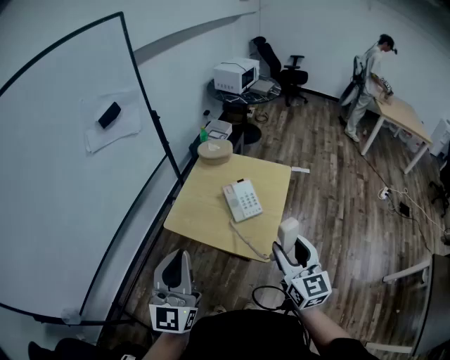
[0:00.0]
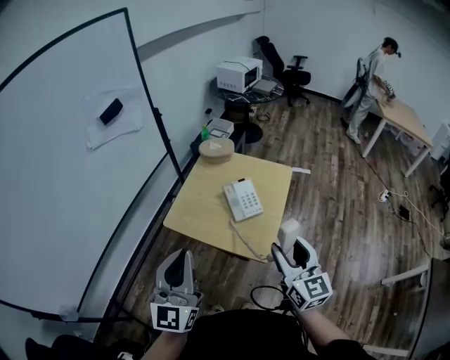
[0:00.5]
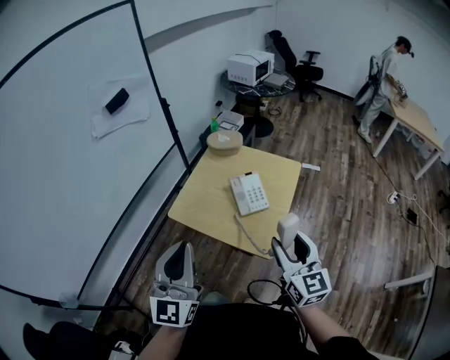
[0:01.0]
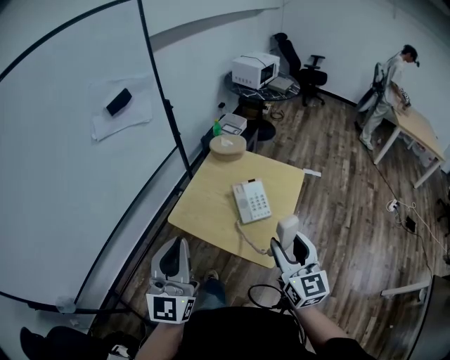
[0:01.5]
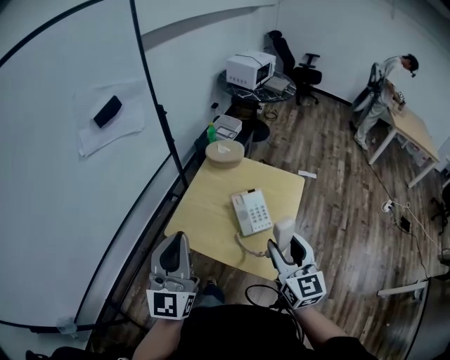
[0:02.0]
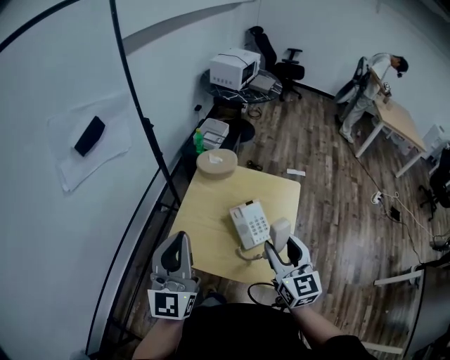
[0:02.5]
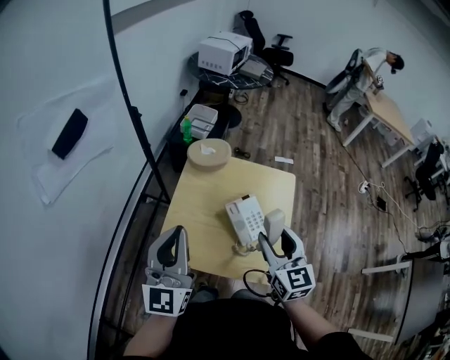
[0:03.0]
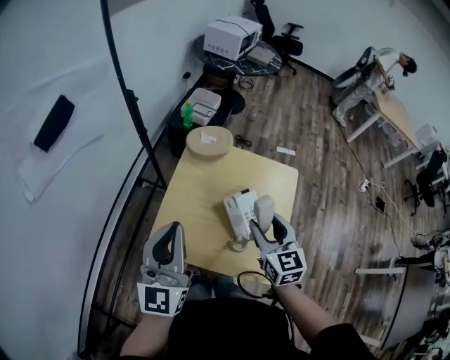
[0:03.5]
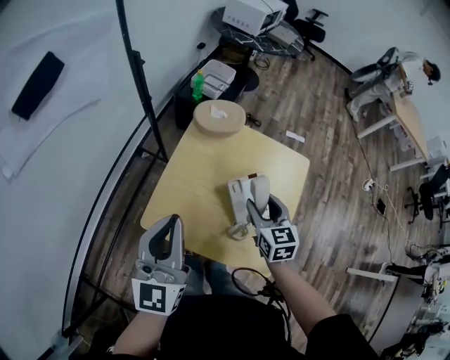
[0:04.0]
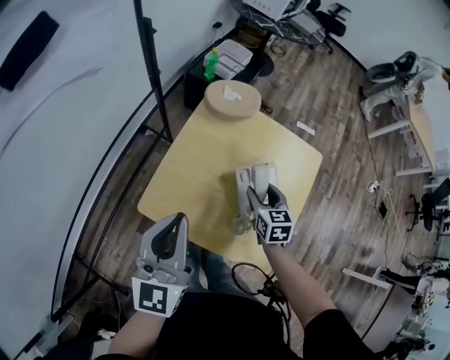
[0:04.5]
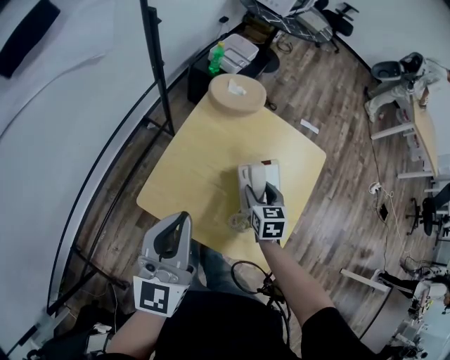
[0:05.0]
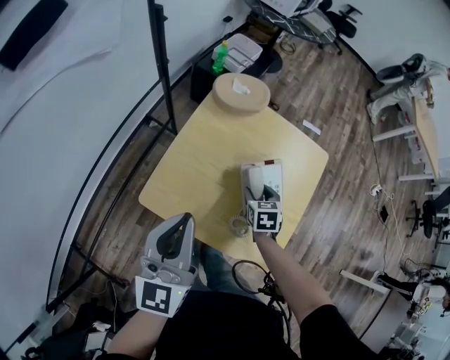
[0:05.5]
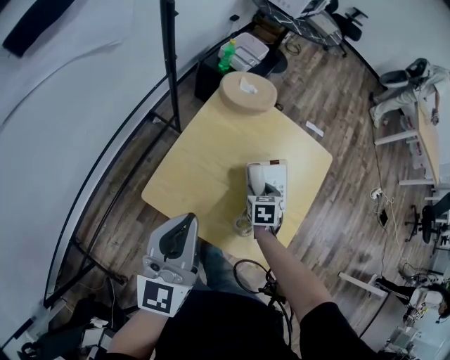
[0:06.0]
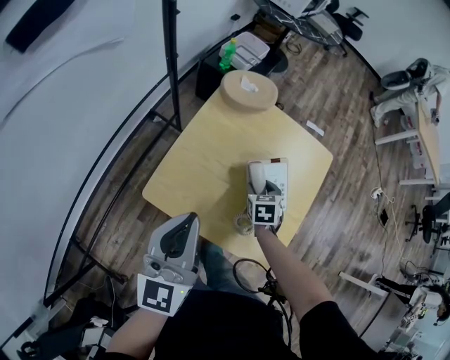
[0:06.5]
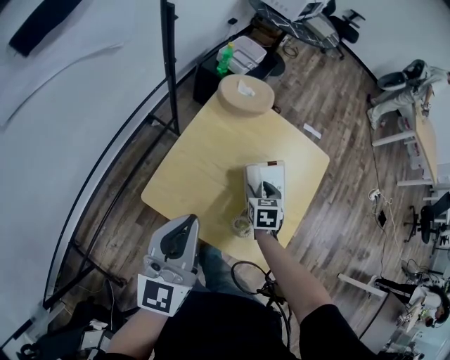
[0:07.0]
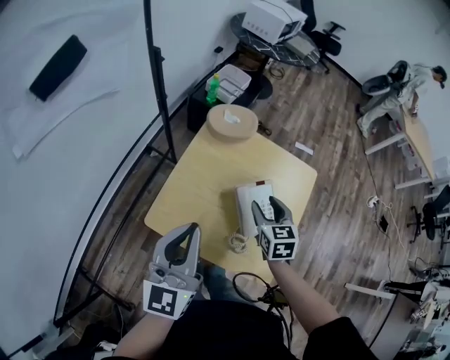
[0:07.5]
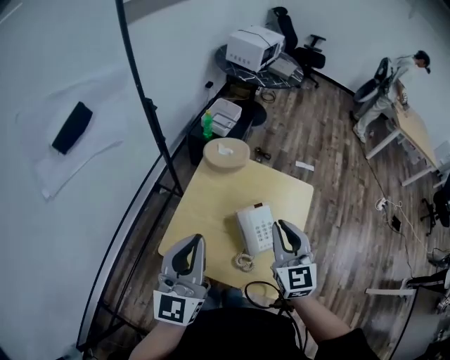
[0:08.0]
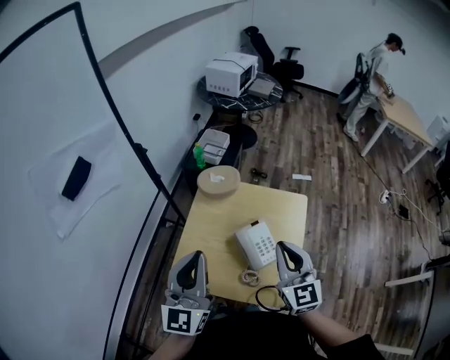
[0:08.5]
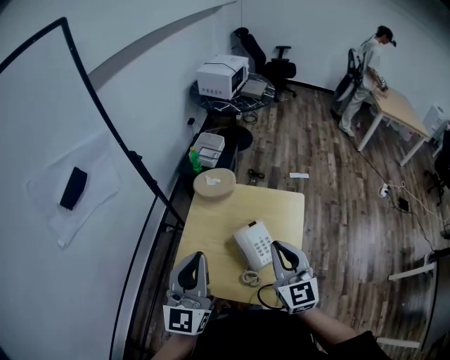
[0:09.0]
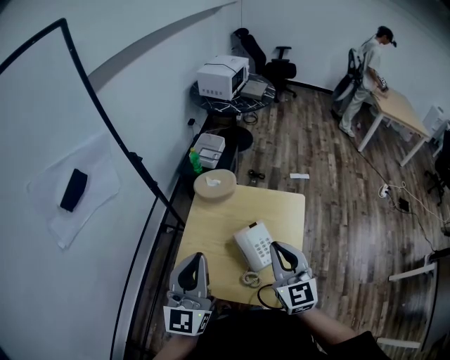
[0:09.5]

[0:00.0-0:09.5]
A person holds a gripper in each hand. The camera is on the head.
0:00.0 to 0:02.0: The two grippers go some 15 cm forward.
0:02.0 to 0:04.0: Both grippers travel together forward and downward, approximately 25 cm. The right gripper changes its angle by approximately 20 degrees.
0:04.0 to 0:05.5: The right gripper travels downward by some 15 cm, and turns by approximately 20 degrees. Meanwhile the left gripper shifts approximately 5 cm downward.
0:05.5 to 0:07.5: The right gripper goes roughly 15 cm upward.
0:07.5 to 0:09.5: The left gripper goes approximately 10 cm upward. The right gripper moves upward and backward, some 20 cm, turns by about 30 degrees, and closes up.

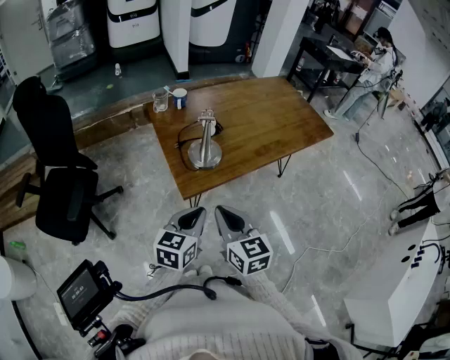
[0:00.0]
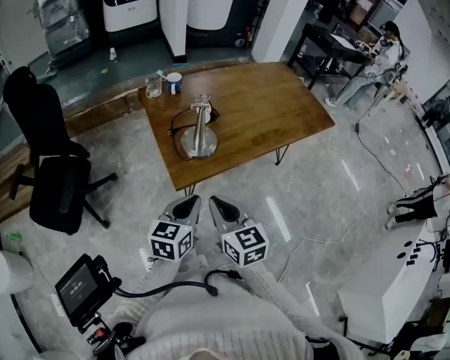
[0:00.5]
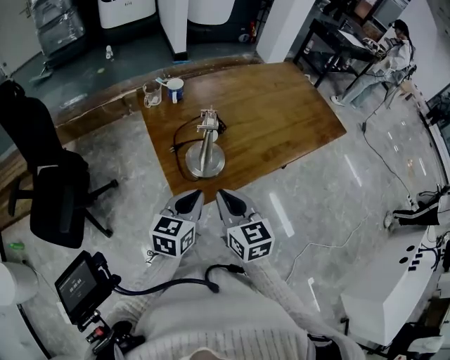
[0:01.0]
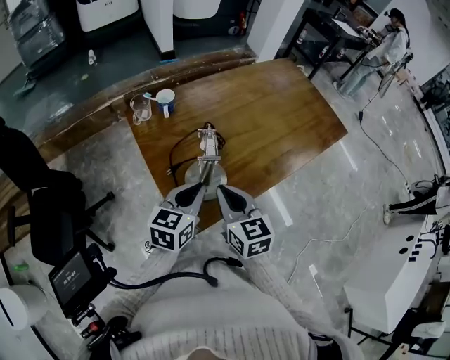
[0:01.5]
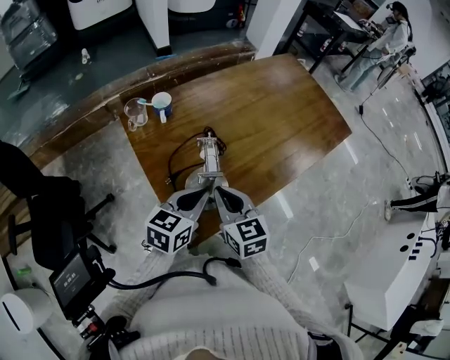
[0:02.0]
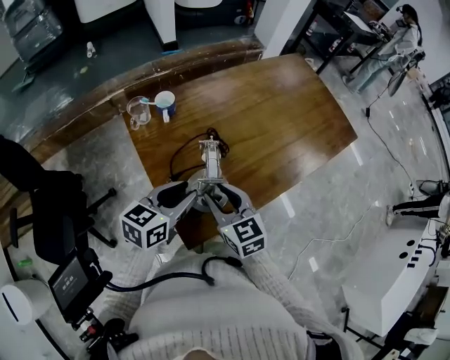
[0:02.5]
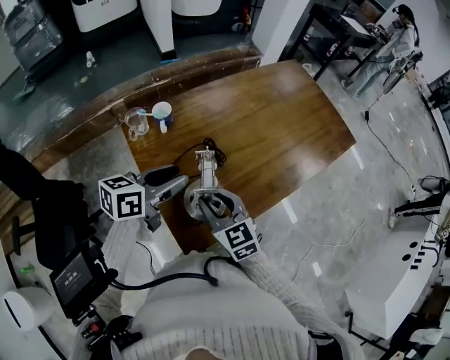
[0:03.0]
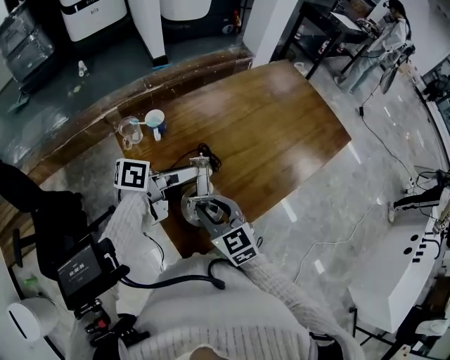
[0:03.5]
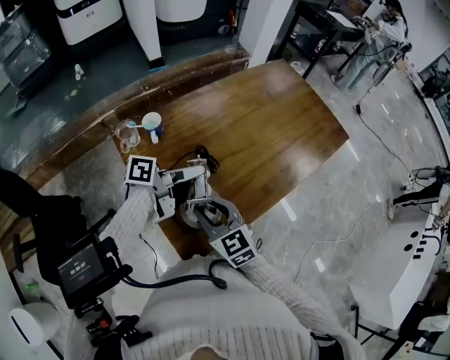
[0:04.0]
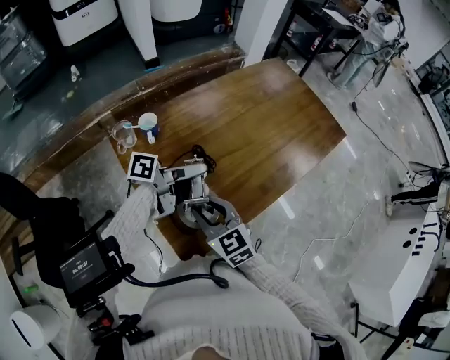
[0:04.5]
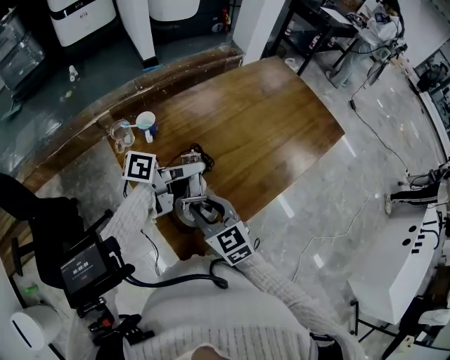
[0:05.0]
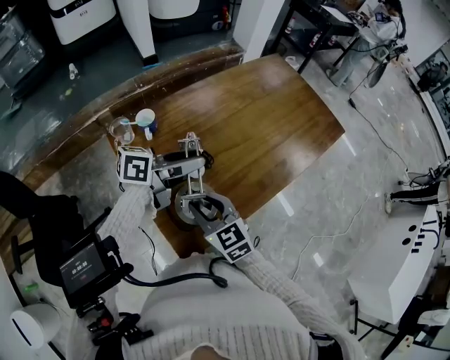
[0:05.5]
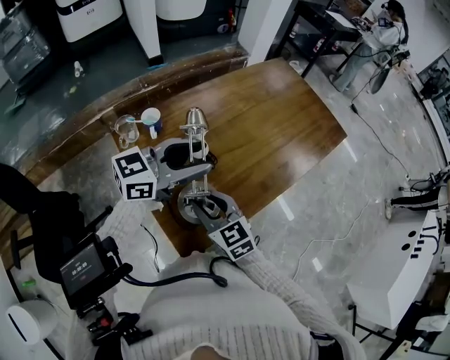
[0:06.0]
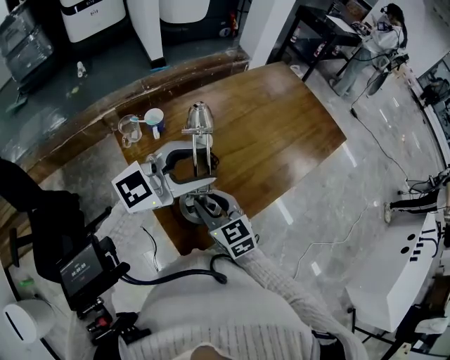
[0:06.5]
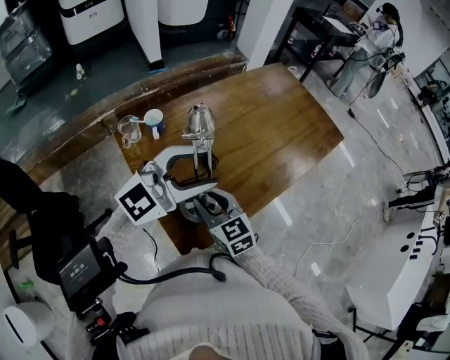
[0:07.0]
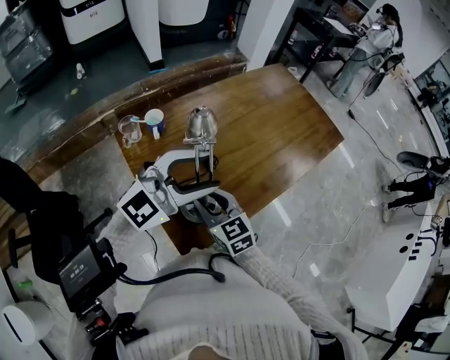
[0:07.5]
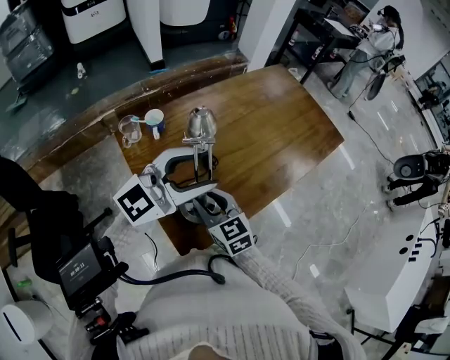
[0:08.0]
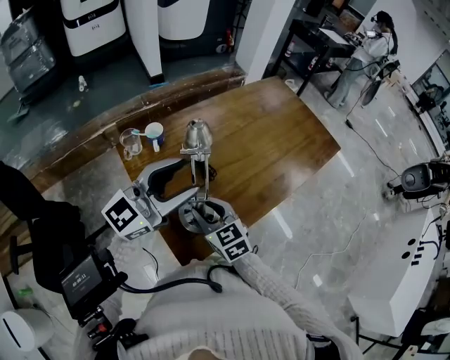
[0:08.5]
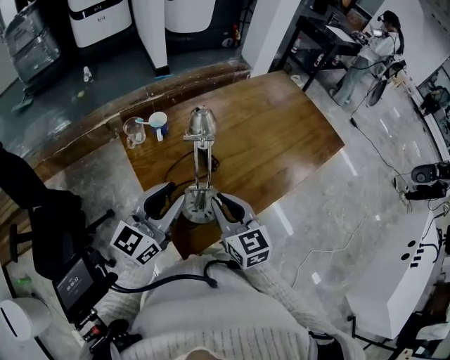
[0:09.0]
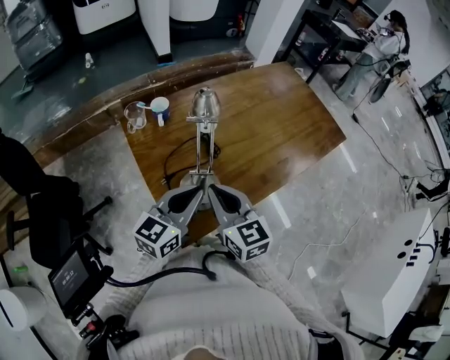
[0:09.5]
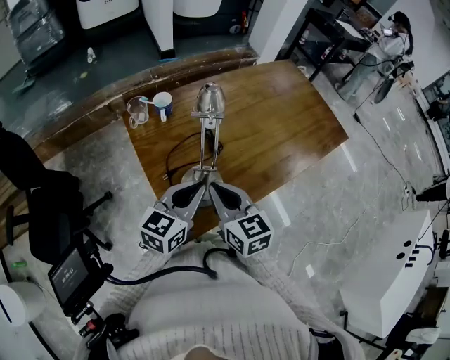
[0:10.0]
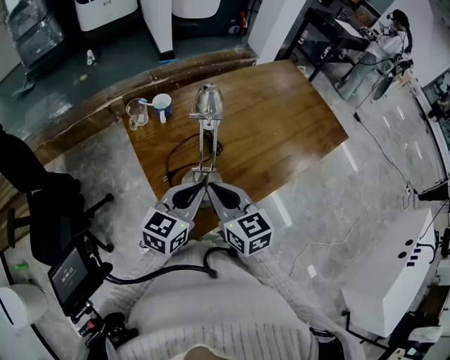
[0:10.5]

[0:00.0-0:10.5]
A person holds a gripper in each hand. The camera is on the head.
0:00.0 to 0:02.0: Both grippers move forward, some 30 cm.
0:02.0 to 0:04.0: The right gripper opens its fingers; the left gripper is displaced forward by approximately 10 cm, rolls counterclockwise, seen from behind, by approximately 50 degrees, and opens its fingers.
0:04.0 to 0:06.5: The left gripper shifts approximately 15 cm upward, and rolls clockwise, seen from behind, by some 90 degrees.
0:06.5 to 0:08.5: The left gripper moves roughly 5 cm.
0:08.5 to 0:10.5: The right gripper heads upward, covering some 5 cm, and closes. Meanwhile the left gripper is displaced downward by approximately 15 cm, rotates roughly 40 degrees, and closes up.

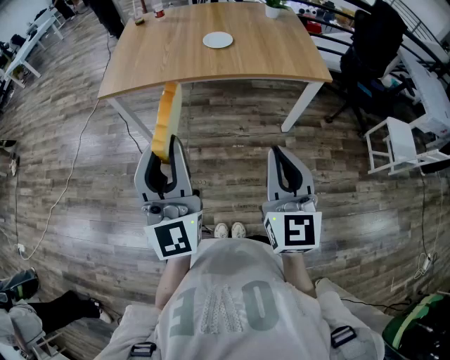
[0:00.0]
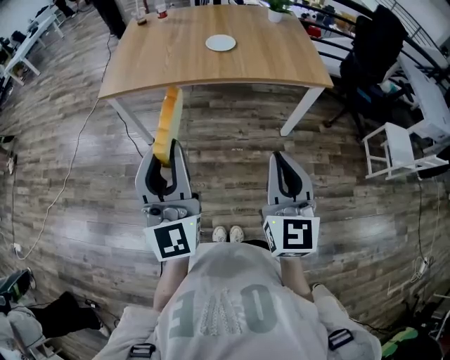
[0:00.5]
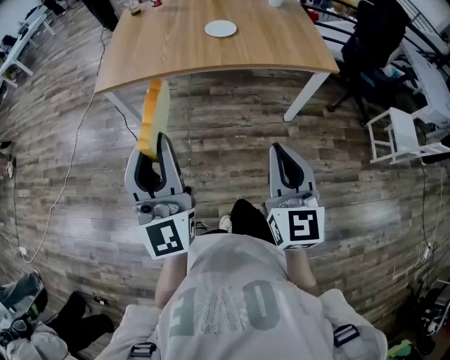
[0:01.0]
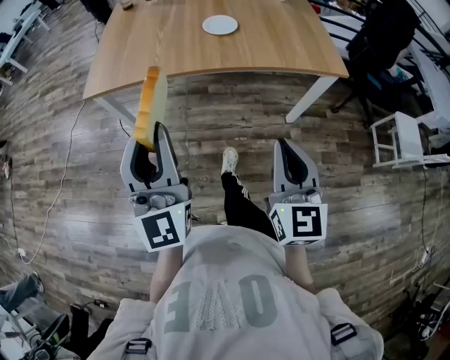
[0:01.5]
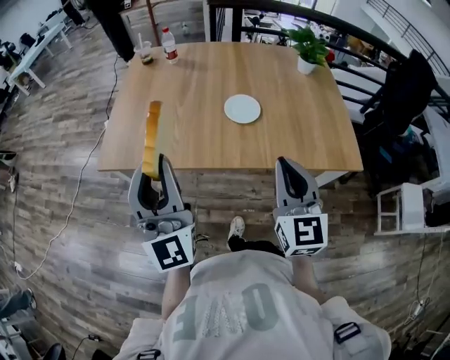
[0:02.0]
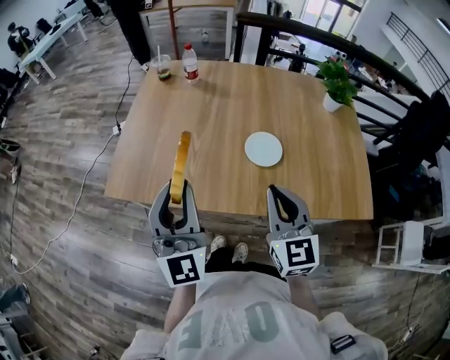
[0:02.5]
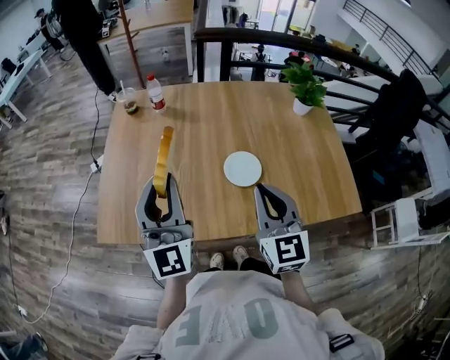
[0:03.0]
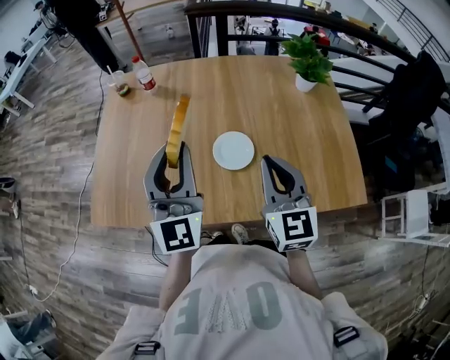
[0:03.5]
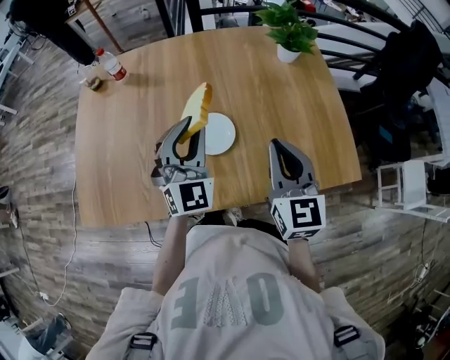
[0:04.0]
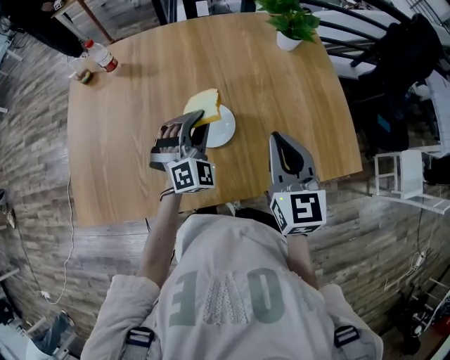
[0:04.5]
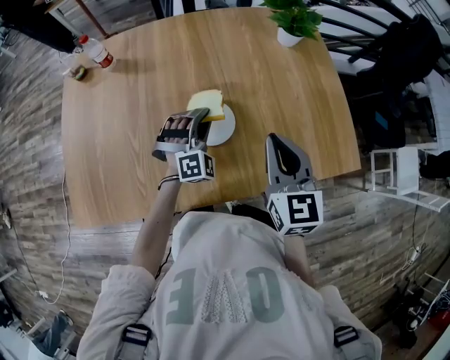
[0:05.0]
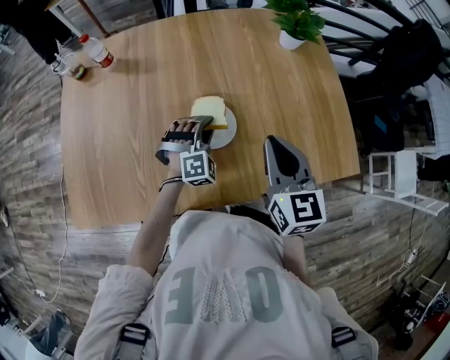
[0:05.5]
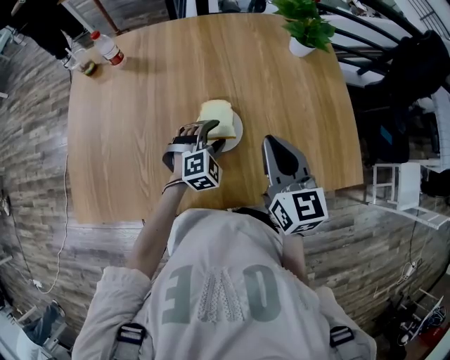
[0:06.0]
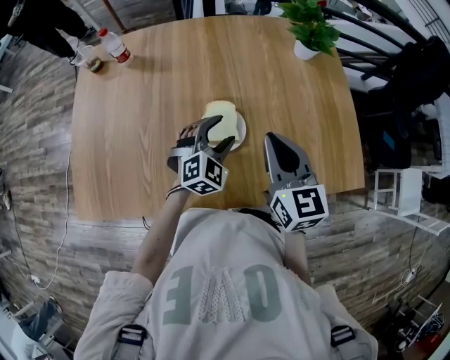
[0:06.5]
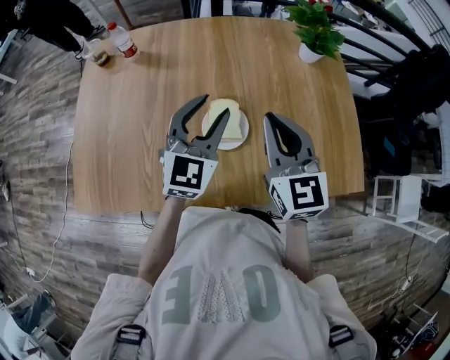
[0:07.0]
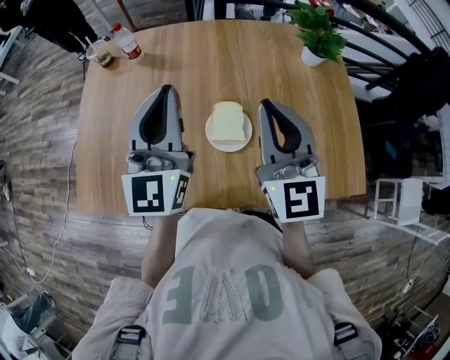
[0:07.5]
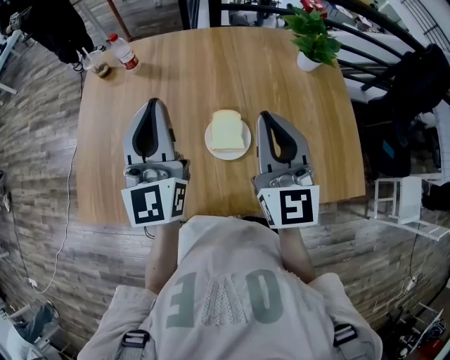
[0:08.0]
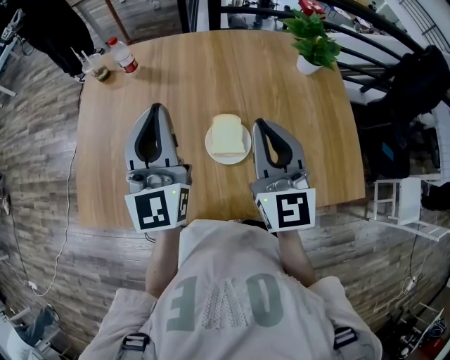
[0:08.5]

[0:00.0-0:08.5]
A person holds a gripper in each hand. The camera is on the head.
0:00.0 to 0:02.0: Both grippers move forward, about 35 cm.
0:02.0 to 0:04.0: The right gripper heads forward and to the right, covering some 25 cm. Meanwhile the left gripper shifts roughly 35 cm forward and to the right, and rotates roughly 40 degrees.
0:04.0 to 0:06.5: The left gripper goes roughly 15 cm downward, turns by approximately 30 degrees, and opens its fingers. The right gripper changes place by roughly 5 cm.
0:06.5 to 0:08.5: The right gripper moves upward and to the left, some 10 cm. Meanwhile the left gripper moves upward and to the left, roughly 30 cm, angles its fingers upward, by some 50 degrees, and closes.
